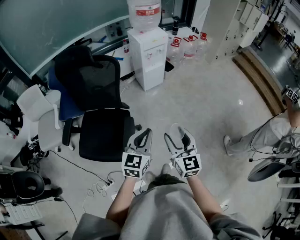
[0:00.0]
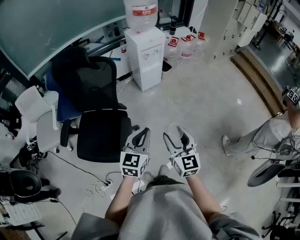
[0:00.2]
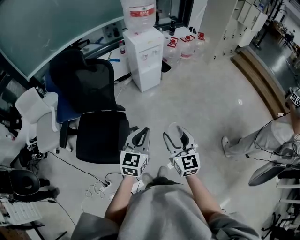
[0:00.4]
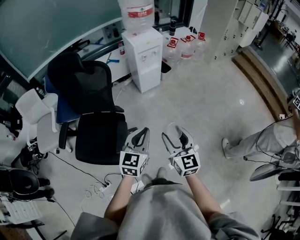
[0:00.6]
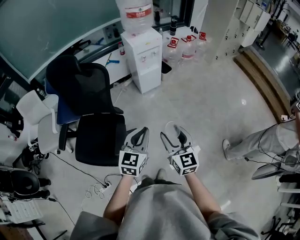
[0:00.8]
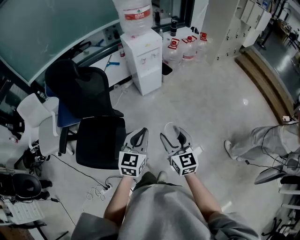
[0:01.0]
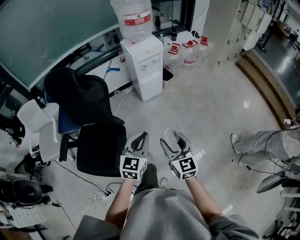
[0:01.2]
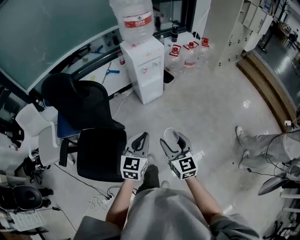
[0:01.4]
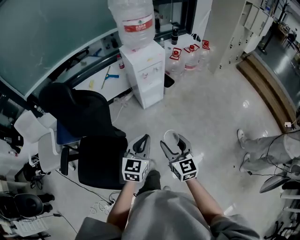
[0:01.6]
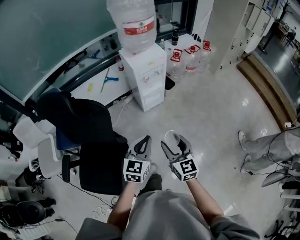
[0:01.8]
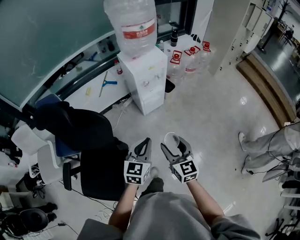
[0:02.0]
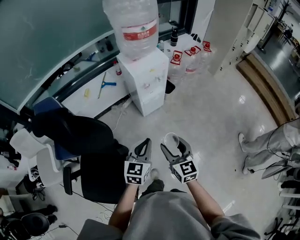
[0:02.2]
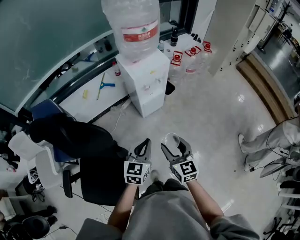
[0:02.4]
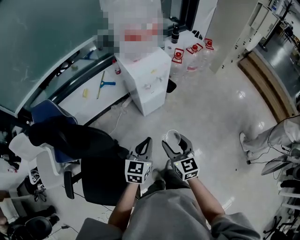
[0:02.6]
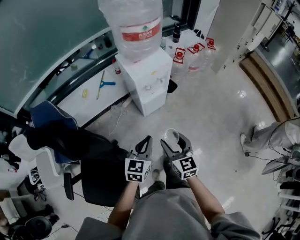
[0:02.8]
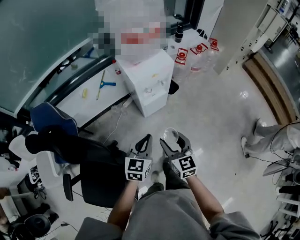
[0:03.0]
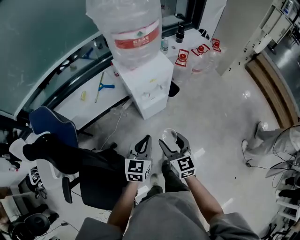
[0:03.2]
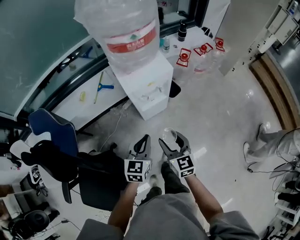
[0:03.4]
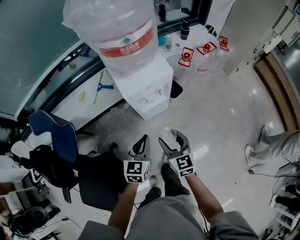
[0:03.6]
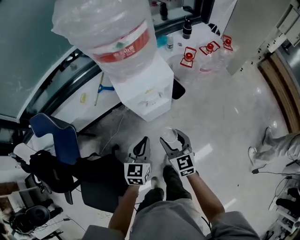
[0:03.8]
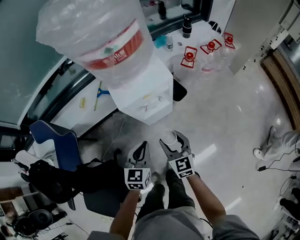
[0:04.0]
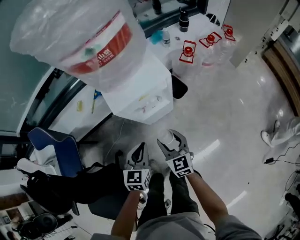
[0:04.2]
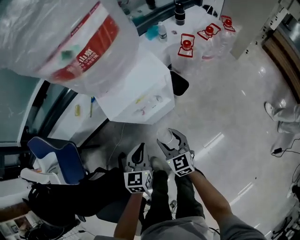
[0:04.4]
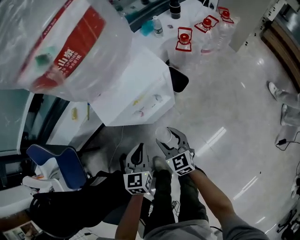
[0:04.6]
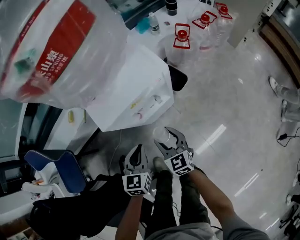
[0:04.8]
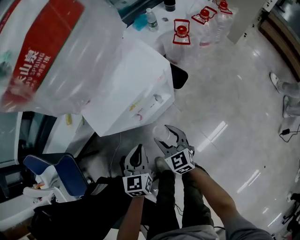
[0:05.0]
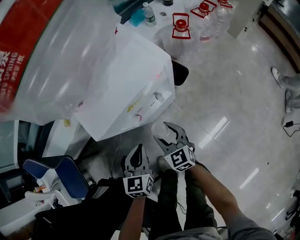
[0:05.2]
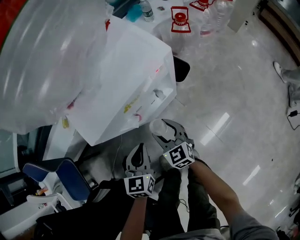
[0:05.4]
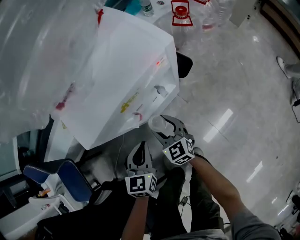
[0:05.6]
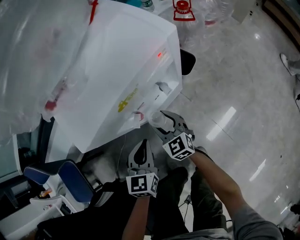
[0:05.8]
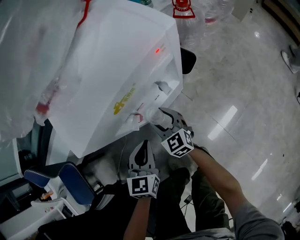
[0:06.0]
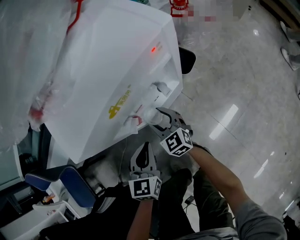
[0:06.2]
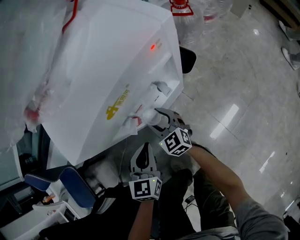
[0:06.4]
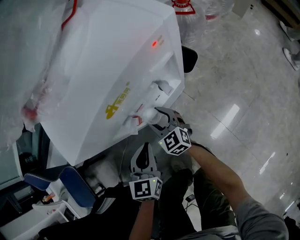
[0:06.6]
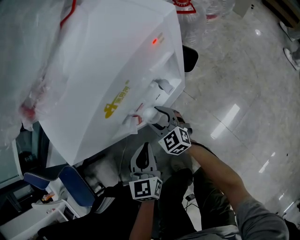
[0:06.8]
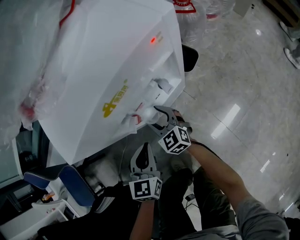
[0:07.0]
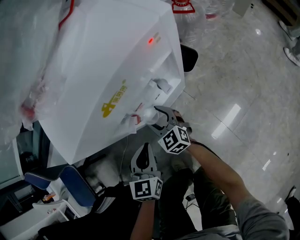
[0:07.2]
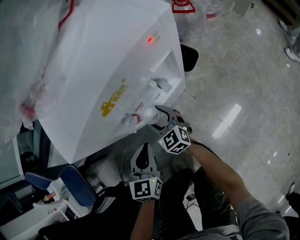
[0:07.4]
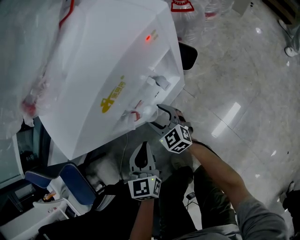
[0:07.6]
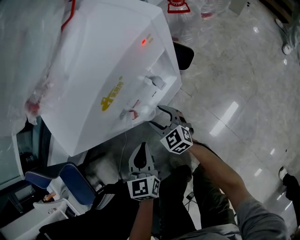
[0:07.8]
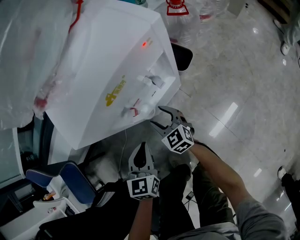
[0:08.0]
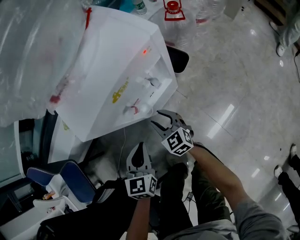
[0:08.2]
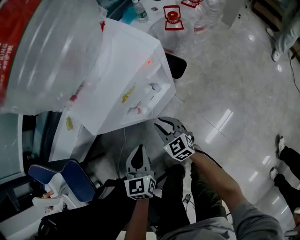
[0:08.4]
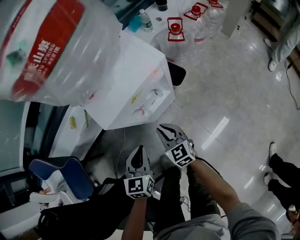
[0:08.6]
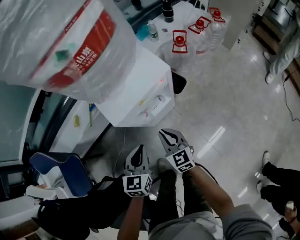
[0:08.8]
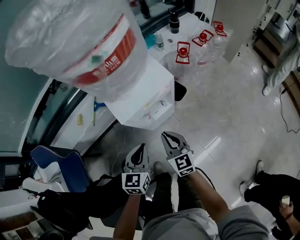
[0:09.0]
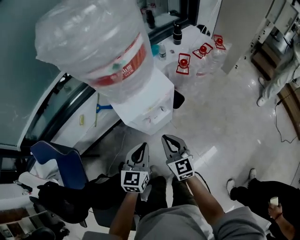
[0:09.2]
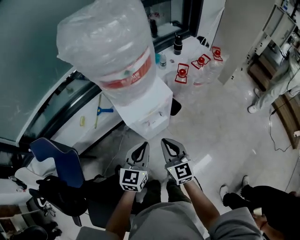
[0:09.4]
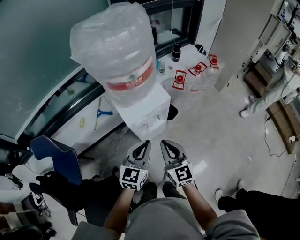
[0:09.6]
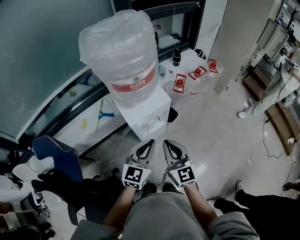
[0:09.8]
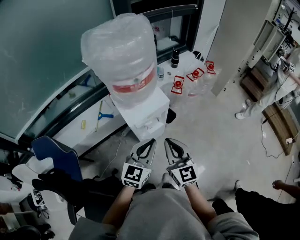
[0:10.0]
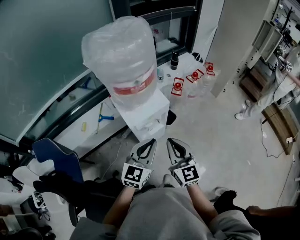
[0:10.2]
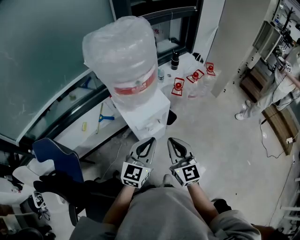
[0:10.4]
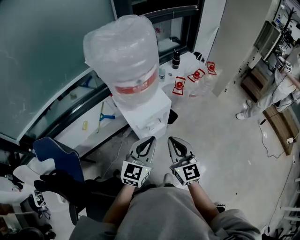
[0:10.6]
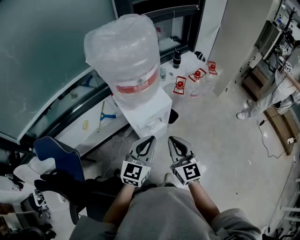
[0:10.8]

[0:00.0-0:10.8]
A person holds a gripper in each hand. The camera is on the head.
0:00.0 to 0:01.6: The grippers both shift forward by roughly 20 cm.
0:01.6 to 0:03.0: Both grippers move forward, some 25 cm.
0:03.0 to 0:04.6: The two grippers go some 35 cm forward and downward.
0:04.6 to 0:06.2: The left gripper goes roughly 15 cm downward. Meanwhile the right gripper moves downward and forward, roughly 25 cm.
0:06.2 to 0:07.8: There are only small adjustments of the grippers.
0:07.8 to 0:09.2: The two grippers go approximately 35 cm upward. The right gripper closes its fingers.
0:09.2 to 0:10.8: The two grippers go about 20 cm upward.

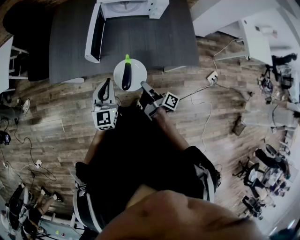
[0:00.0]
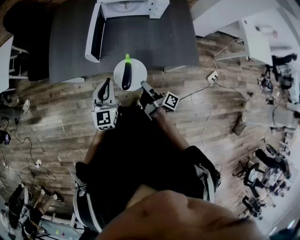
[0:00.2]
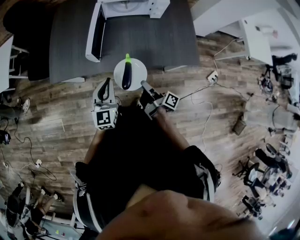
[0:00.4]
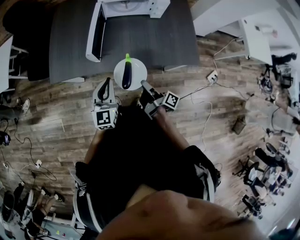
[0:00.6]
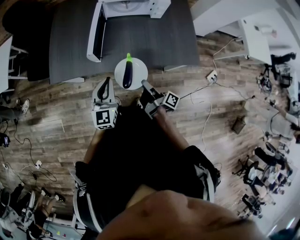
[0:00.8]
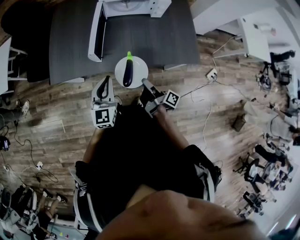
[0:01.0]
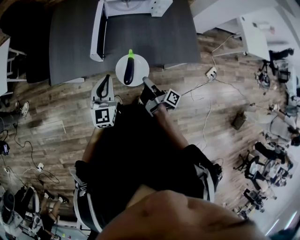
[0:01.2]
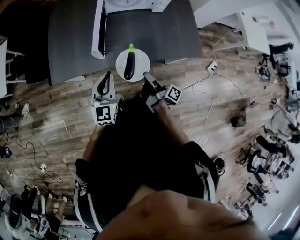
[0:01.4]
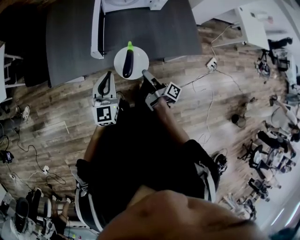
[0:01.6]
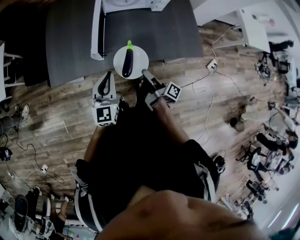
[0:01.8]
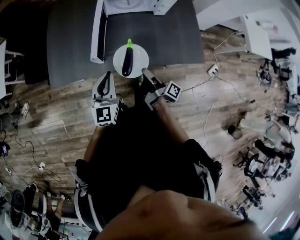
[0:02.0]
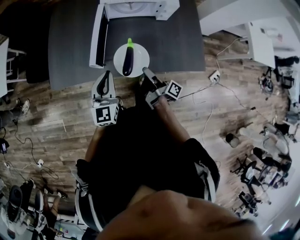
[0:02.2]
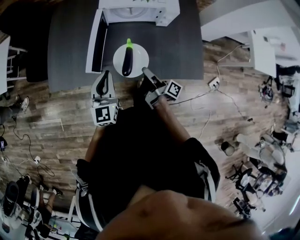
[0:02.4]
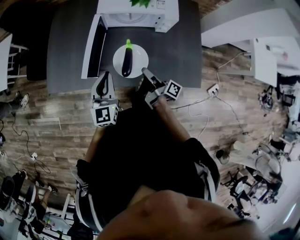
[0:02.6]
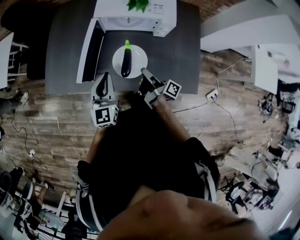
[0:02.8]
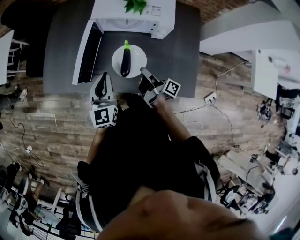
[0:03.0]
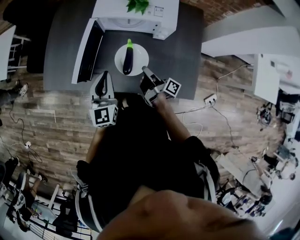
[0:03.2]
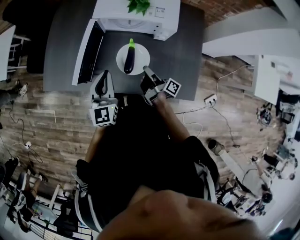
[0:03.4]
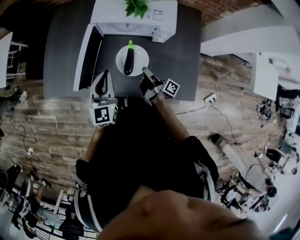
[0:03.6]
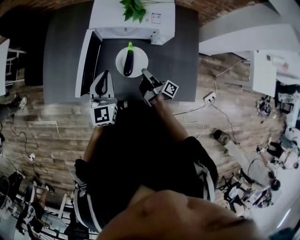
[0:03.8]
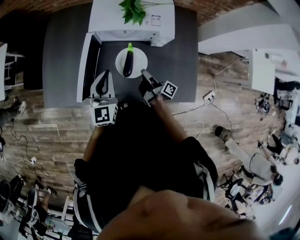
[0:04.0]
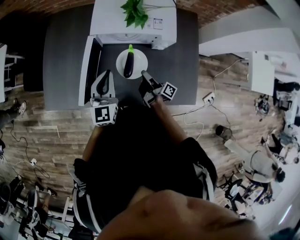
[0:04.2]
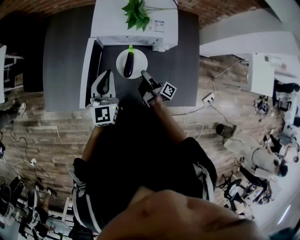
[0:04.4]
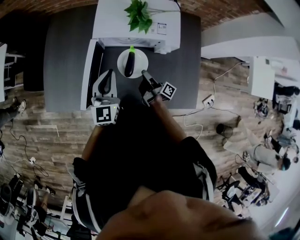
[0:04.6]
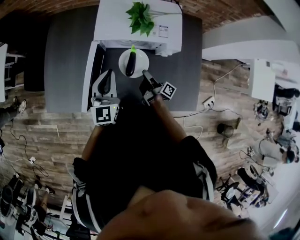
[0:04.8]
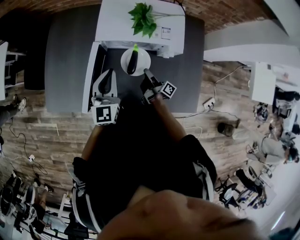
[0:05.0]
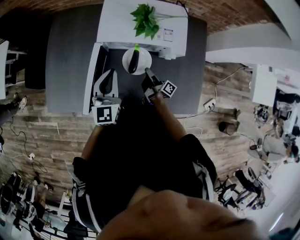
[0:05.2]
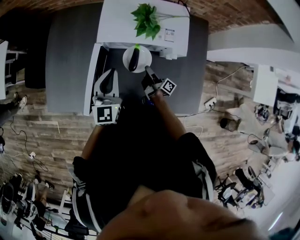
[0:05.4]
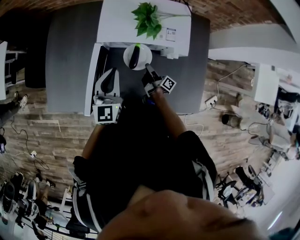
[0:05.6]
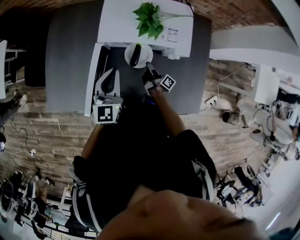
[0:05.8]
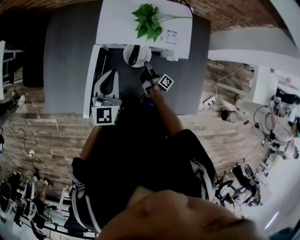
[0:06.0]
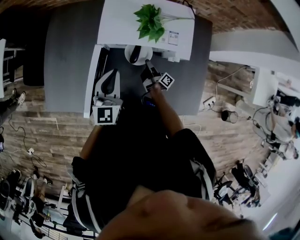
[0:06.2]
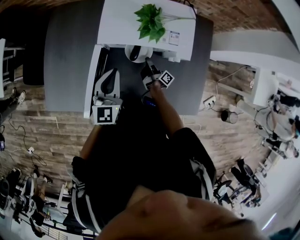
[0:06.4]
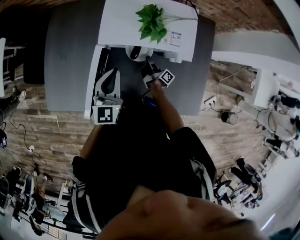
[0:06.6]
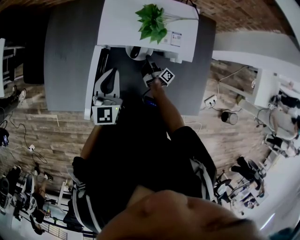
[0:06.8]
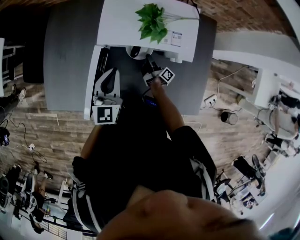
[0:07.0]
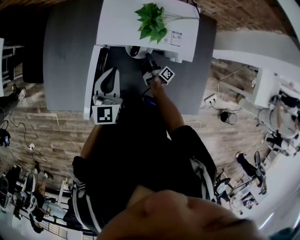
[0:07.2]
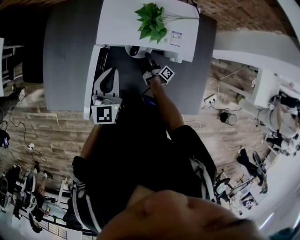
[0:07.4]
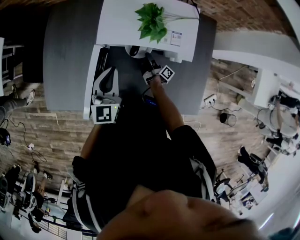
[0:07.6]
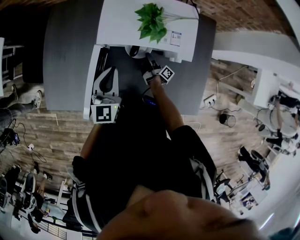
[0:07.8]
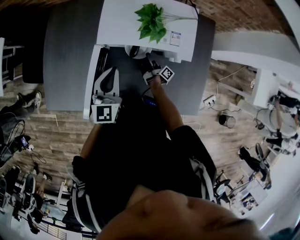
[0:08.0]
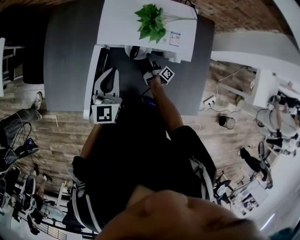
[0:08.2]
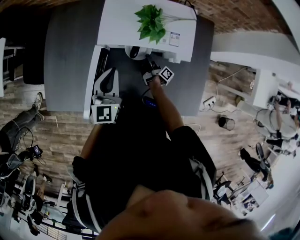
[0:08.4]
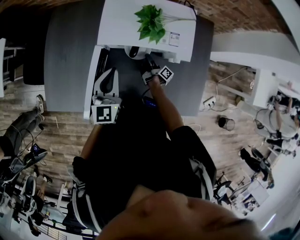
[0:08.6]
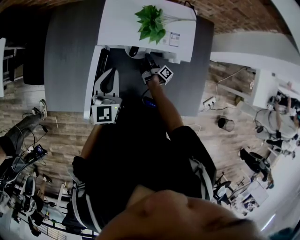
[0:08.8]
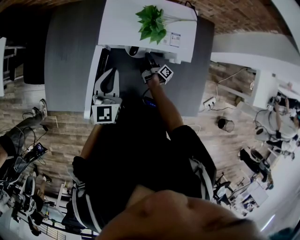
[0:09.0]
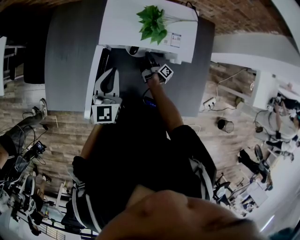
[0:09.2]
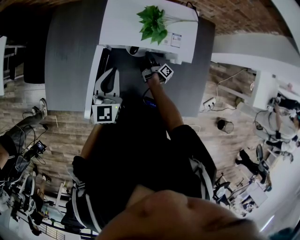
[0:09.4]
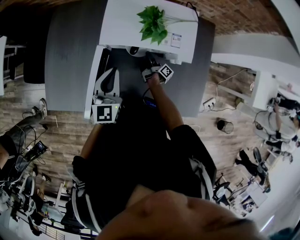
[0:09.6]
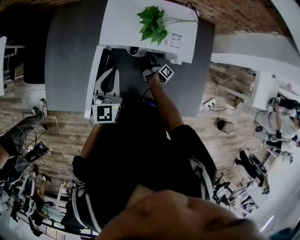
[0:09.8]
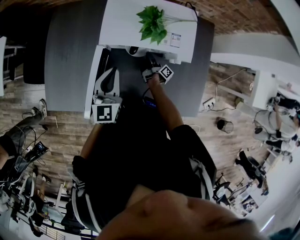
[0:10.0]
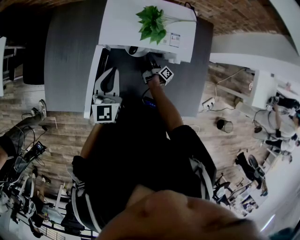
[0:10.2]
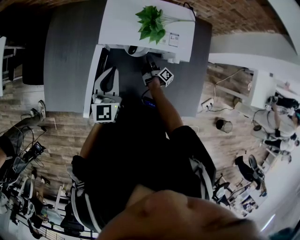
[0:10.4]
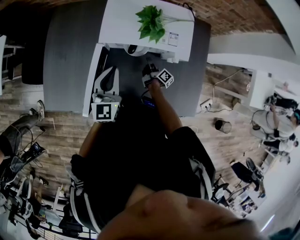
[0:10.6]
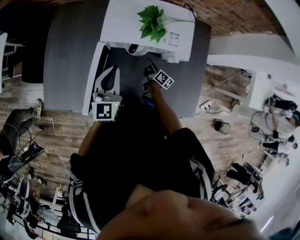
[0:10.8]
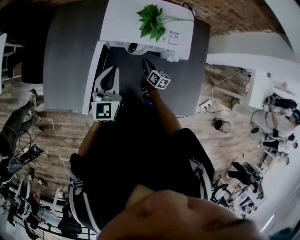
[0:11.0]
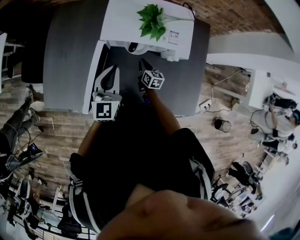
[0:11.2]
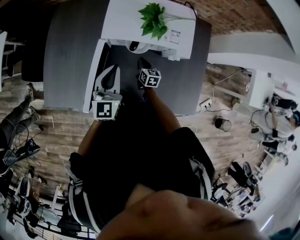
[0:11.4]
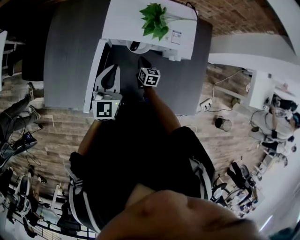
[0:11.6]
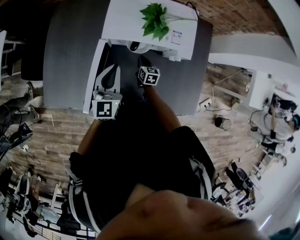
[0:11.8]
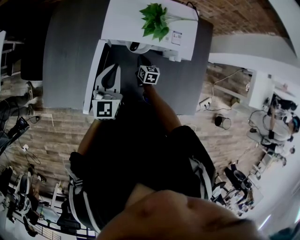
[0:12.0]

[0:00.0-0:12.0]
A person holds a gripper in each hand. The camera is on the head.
0:00.0 to 0:01.6: The left gripper moves some 5 cm.
0:01.6 to 0:03.0: The left gripper moves approximately 20 cm, and changes its angle by some 20 degrees.
0:03.0 to 0:04.4: The left gripper shifts by approximately 10 cm.
0:04.4 to 0:06.0: The left gripper changes place by roughly 5 cm.

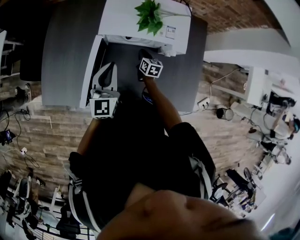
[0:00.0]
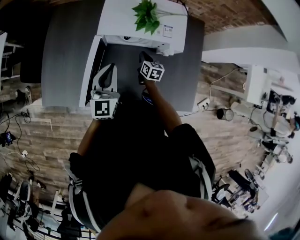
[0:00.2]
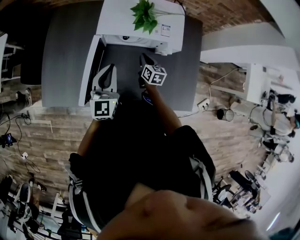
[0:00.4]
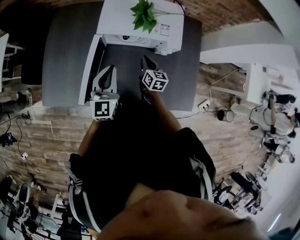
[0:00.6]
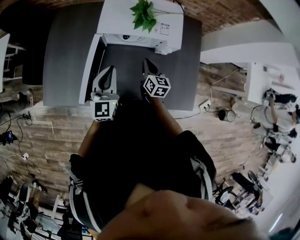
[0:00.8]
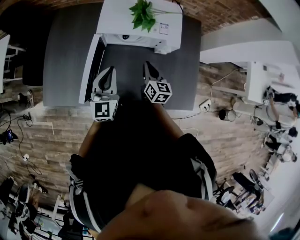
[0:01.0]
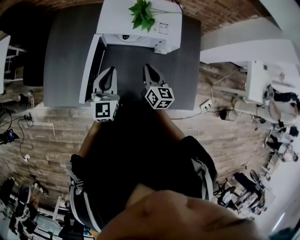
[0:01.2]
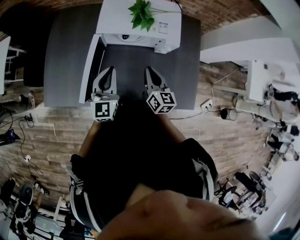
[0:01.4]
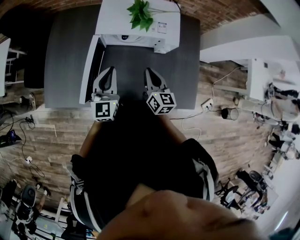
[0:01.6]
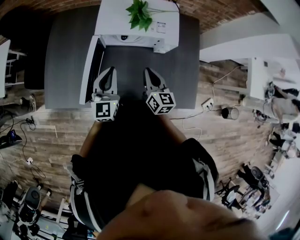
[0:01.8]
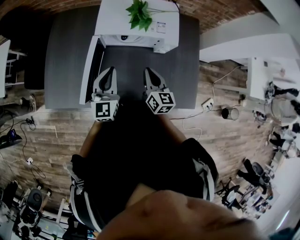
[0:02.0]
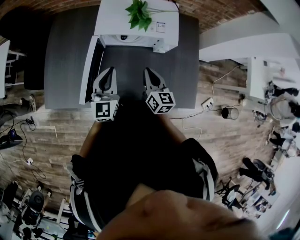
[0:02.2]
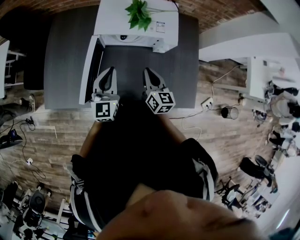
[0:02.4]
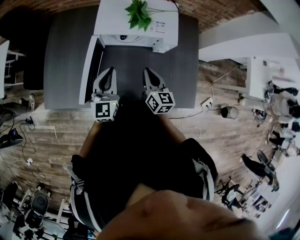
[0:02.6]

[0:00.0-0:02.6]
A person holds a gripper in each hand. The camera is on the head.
0:00.0 to 0:01.2: The left gripper ends up some 5 cm from where it was.
